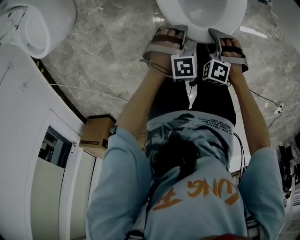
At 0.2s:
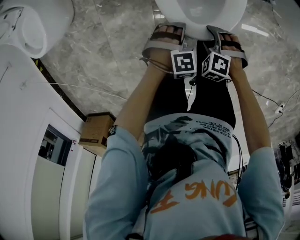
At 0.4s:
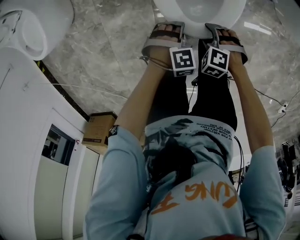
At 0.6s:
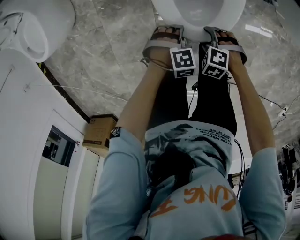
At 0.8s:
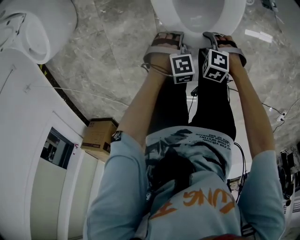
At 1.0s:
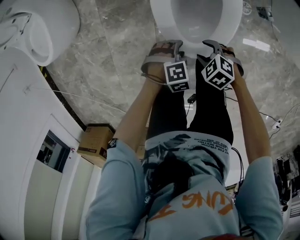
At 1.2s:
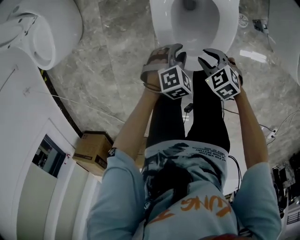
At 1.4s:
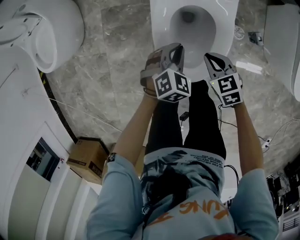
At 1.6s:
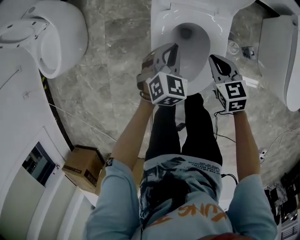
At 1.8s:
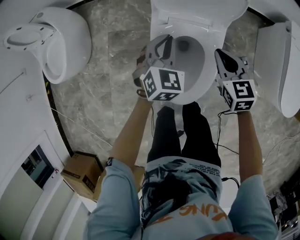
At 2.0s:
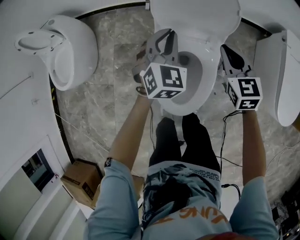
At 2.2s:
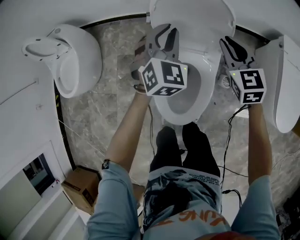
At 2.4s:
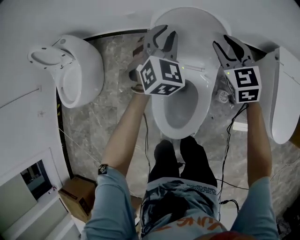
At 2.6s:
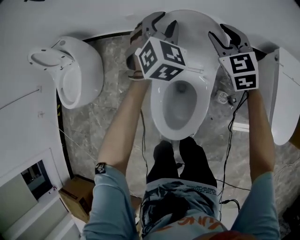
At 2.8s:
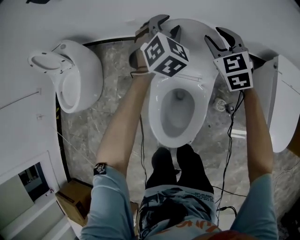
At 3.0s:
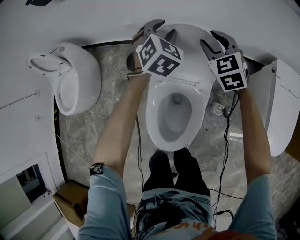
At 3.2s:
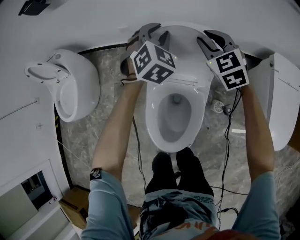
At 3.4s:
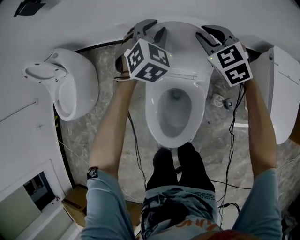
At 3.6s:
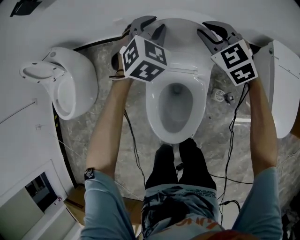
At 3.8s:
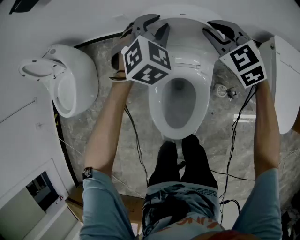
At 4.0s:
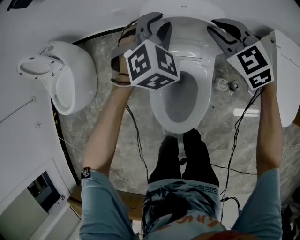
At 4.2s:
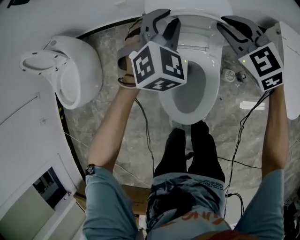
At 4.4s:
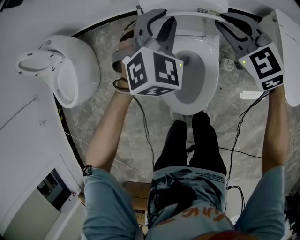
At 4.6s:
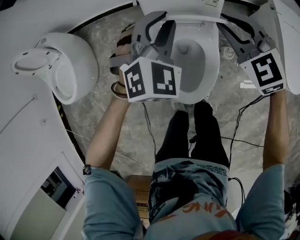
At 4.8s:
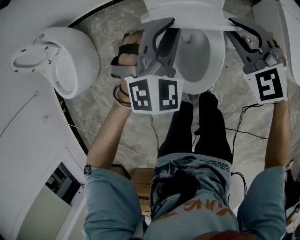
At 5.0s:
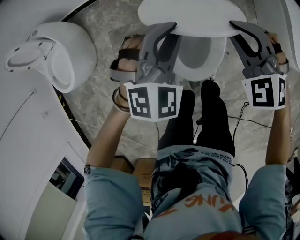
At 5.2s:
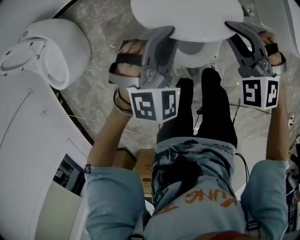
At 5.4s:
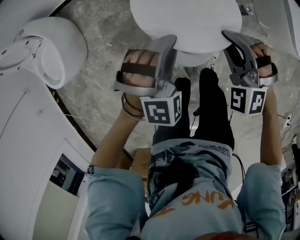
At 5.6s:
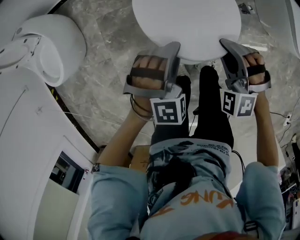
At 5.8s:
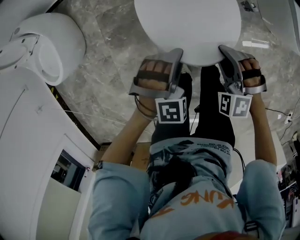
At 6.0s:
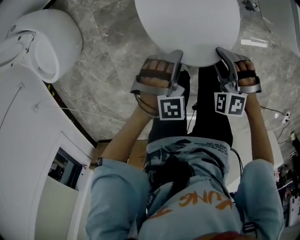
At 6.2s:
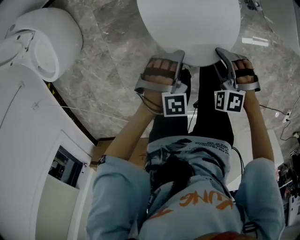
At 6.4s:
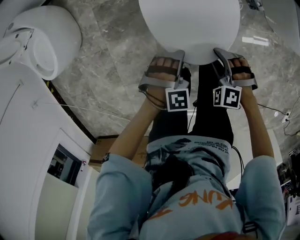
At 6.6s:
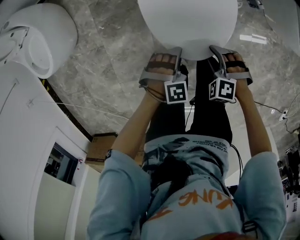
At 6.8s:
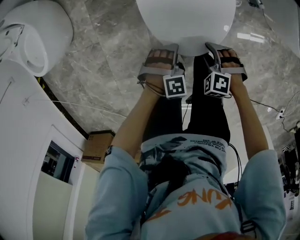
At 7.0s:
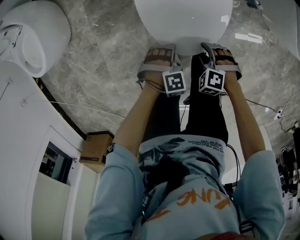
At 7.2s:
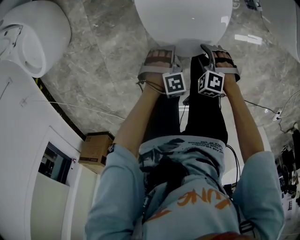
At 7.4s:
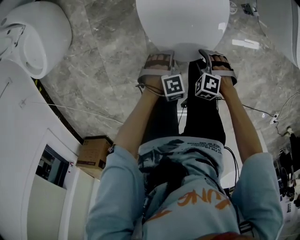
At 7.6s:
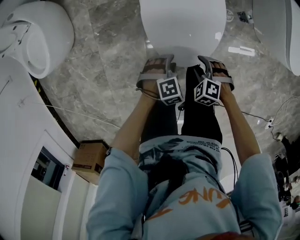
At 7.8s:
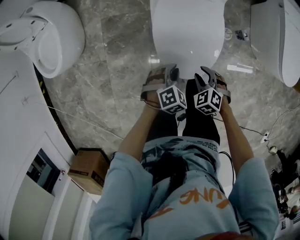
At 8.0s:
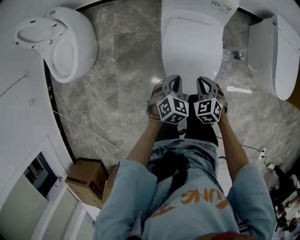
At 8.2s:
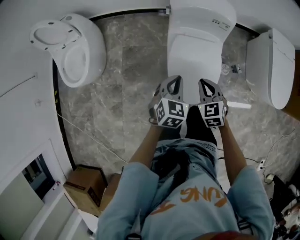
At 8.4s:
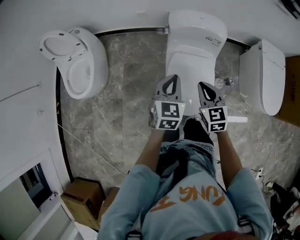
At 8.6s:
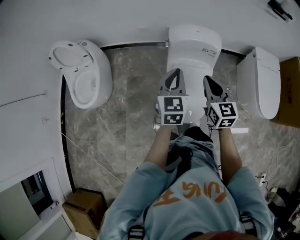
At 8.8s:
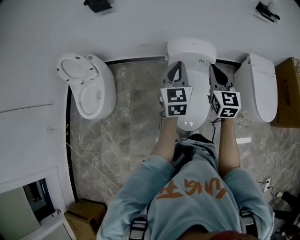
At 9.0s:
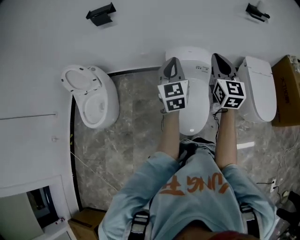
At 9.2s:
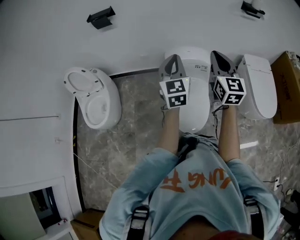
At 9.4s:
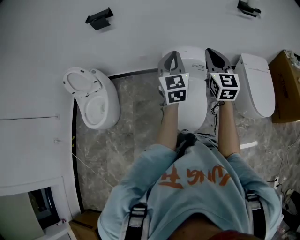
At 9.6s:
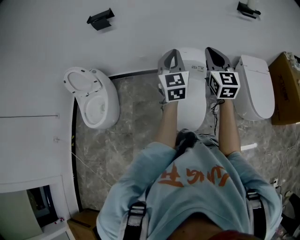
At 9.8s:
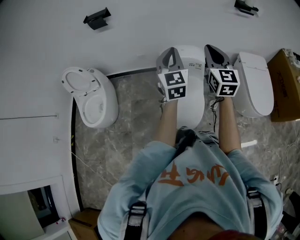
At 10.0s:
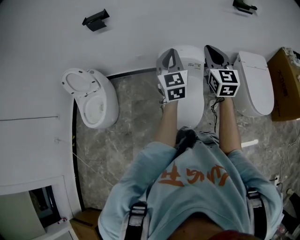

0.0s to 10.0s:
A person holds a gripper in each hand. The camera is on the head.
0.0s to 1.4s: The right gripper reaches approximately 10 cm downward, then returns, twists approximately 50 degrees clockwise, seen from behind, and closes; the left gripper moves roughly 10 cm downward and comes back, rotates around the line of its fingers by approximately 40 degrees, counterclockwise from behind, and closes its fingers.
1.4s to 2.8s: Both grippers move forward and upward, some 50 cm. The left gripper turns by about 30 degrees. Meanwhile the right gripper rotates about 40 degrees, and opens.
2.8s to 4.2s: Both grippers move backward, roughly 10 cm.
4.2s to 5.8s: Both grippers travel together backward and downward, some 40 cm. The right gripper rotates about 40 degrees. The left gripper rotates roughly 40 degrees.
5.8s to 7.2s: The left gripper travels downward by approximately 20 cm, and swivels approximately 20 degrees, while the right gripper heads downward and backward, covering approximately 20 cm, and swivels approximately 30 degrees.
7.2s to 8.6s: Both grippers move upward, approximately 50 cm. The left gripper tilts its fingers about 50 degrees upward, and closes its fingers. The right gripper points its fingers about 50 degrees further upward, and closes.
8.6s to 10.0s: The grippers both shift upward and to the right by approximately 20 cm. The right gripper changes its angle by some 20 degrees.

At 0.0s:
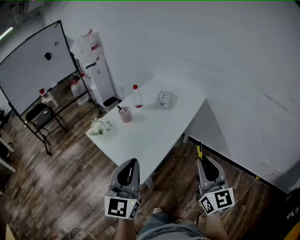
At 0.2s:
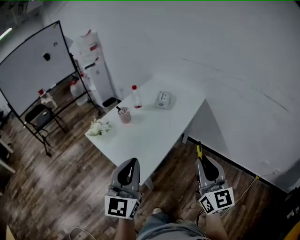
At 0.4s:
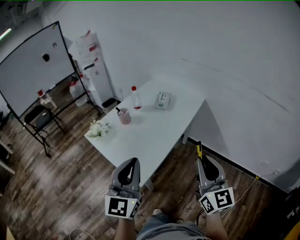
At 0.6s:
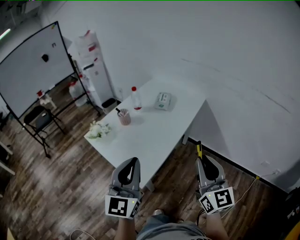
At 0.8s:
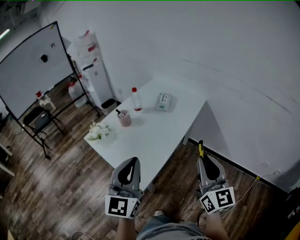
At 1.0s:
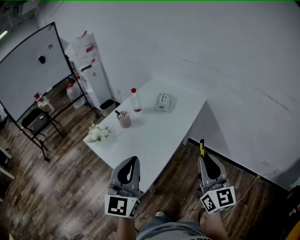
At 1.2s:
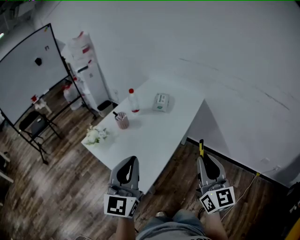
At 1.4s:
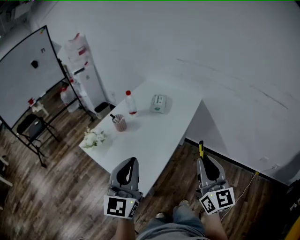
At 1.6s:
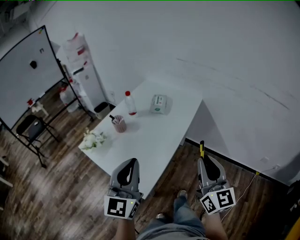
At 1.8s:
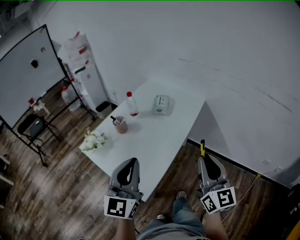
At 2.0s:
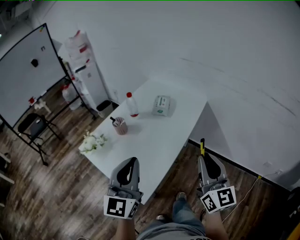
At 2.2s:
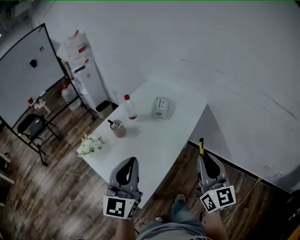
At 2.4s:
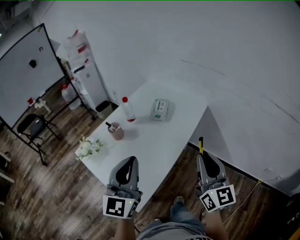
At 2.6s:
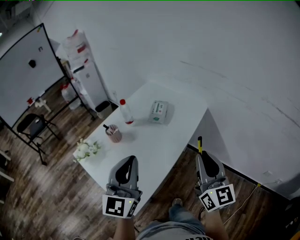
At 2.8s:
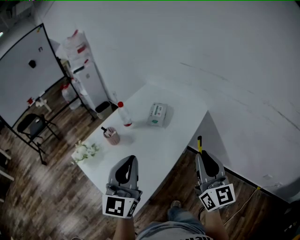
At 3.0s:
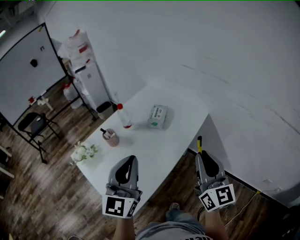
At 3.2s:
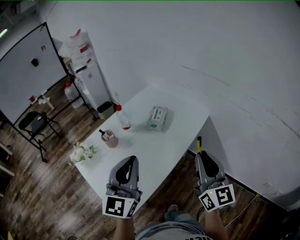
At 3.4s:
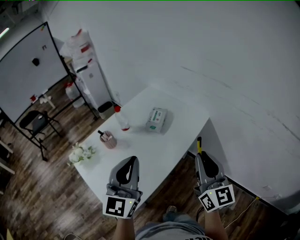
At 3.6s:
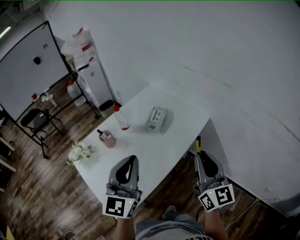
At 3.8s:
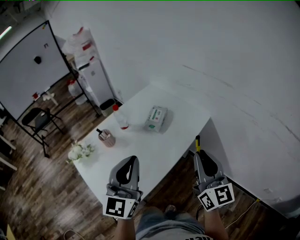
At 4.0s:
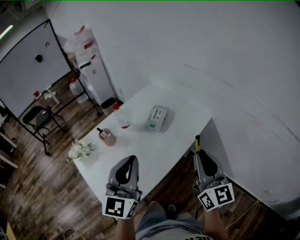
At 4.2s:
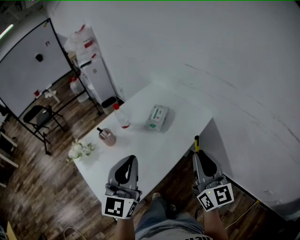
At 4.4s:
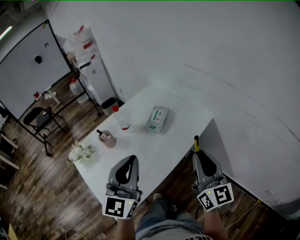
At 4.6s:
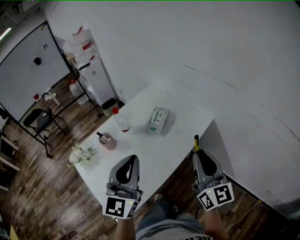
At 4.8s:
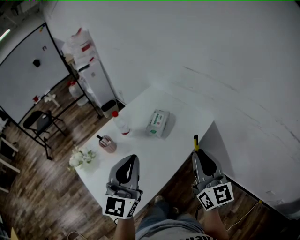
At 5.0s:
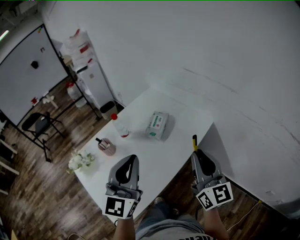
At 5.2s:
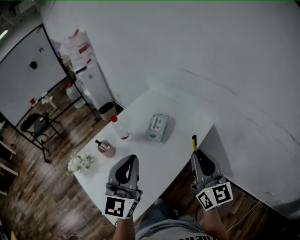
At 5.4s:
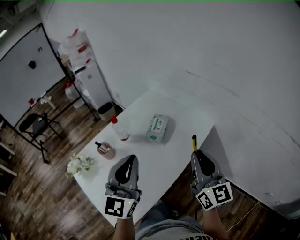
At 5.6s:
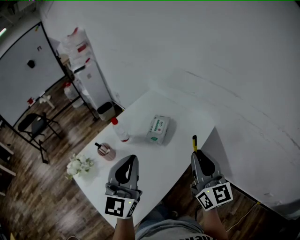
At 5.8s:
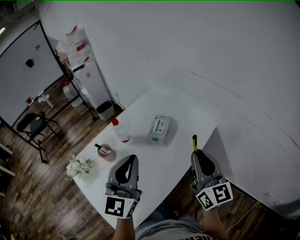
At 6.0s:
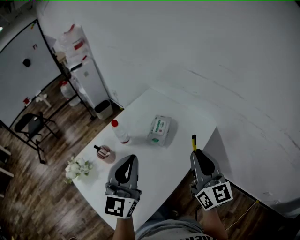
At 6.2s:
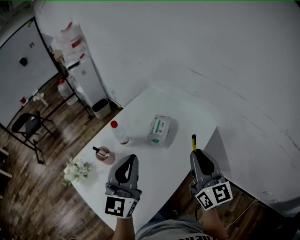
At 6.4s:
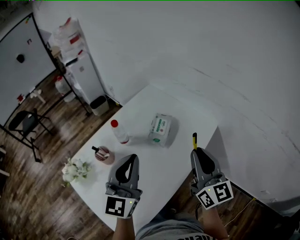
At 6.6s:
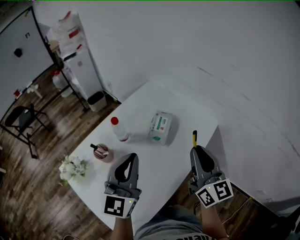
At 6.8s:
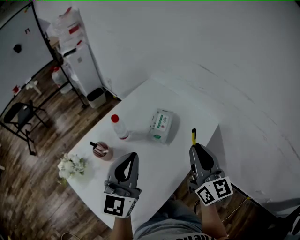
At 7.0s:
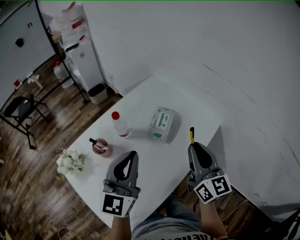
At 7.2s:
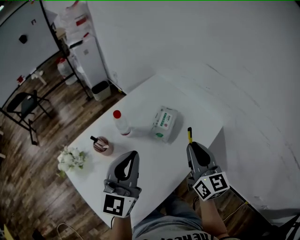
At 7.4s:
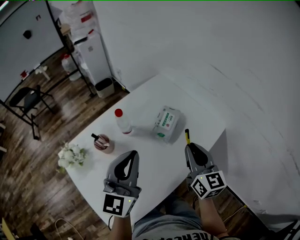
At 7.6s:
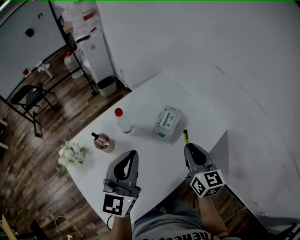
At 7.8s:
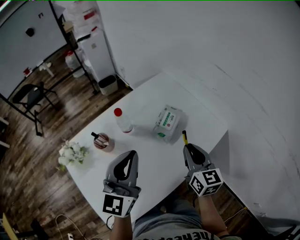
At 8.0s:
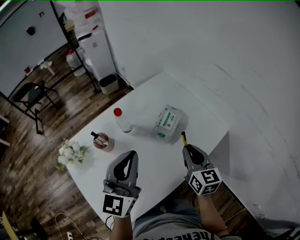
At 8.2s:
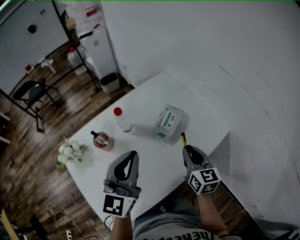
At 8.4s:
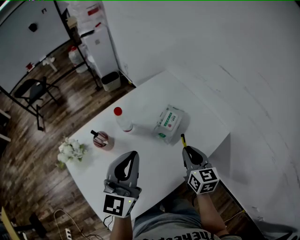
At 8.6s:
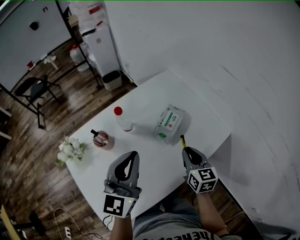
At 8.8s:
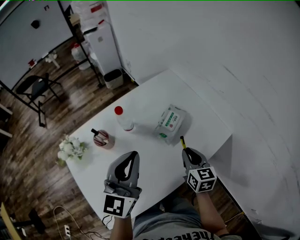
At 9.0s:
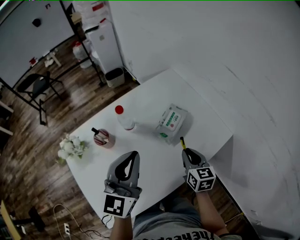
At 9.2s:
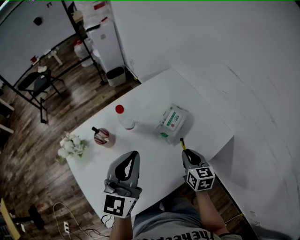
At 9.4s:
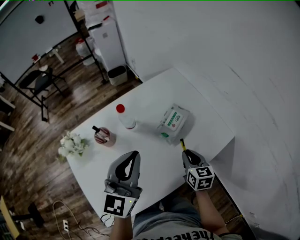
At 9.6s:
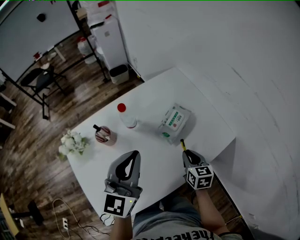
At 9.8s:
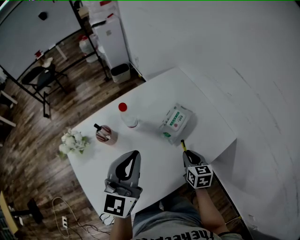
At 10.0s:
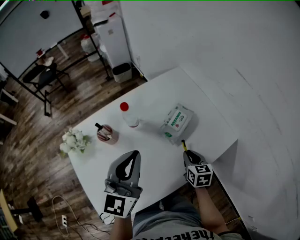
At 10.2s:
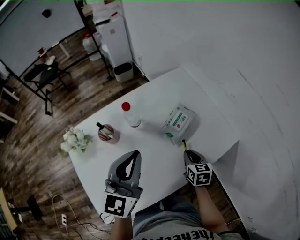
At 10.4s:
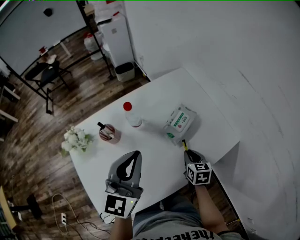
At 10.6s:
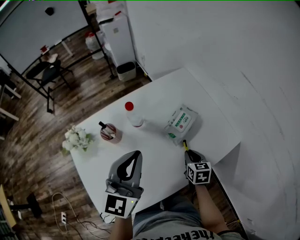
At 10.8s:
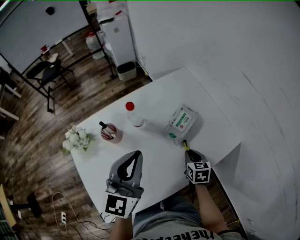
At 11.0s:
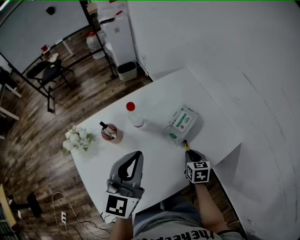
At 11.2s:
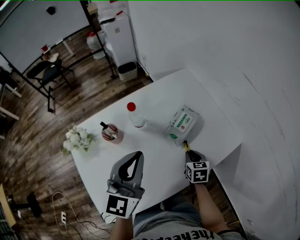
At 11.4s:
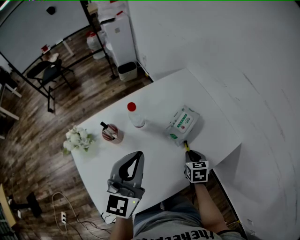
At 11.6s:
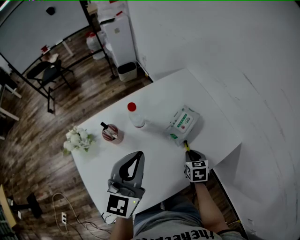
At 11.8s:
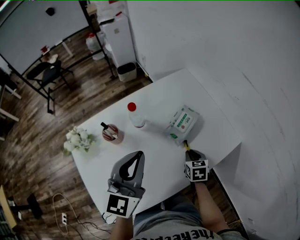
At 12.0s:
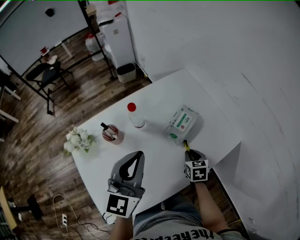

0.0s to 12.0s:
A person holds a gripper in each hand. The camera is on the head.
0.0s to 1.6s: Both grippers move forward, some 5 cm.
1.6s to 3.0s: The left gripper moves forward and to the right, some 15 cm, while the right gripper travels forward by about 20 cm.
3.0s to 4.4s: The right gripper moves forward, some 5 cm. Meanwhile the left gripper ends up roughly 5 cm from where it was.
4.4s to 6.0s: Both grippers move forward, approximately 10 cm.
6.0s to 7.6s: The left gripper moves some 5 cm; the right gripper is displaced downward and forward by roughly 15 cm.
7.6s to 9.0s: The right gripper travels downward by approximately 10 cm.
9.0s to 10.4s: The right gripper moves downward, about 5 cm.
10.4s to 12.0s: The grippers make only small movements.

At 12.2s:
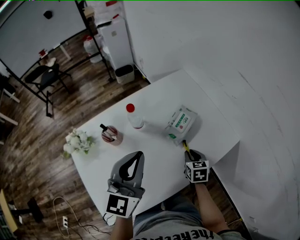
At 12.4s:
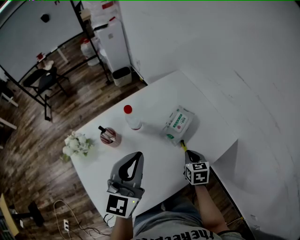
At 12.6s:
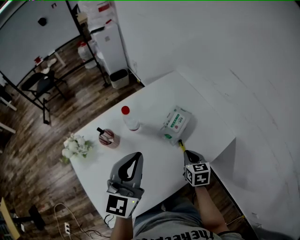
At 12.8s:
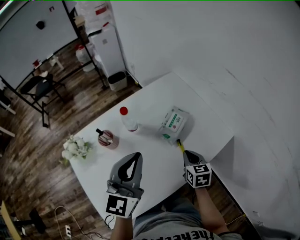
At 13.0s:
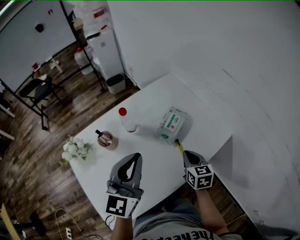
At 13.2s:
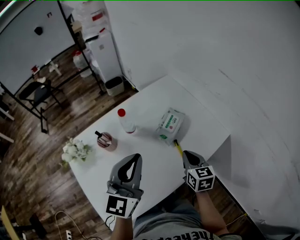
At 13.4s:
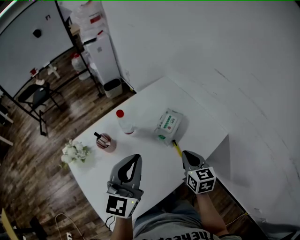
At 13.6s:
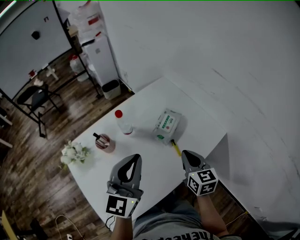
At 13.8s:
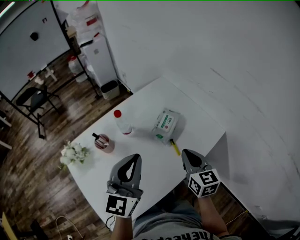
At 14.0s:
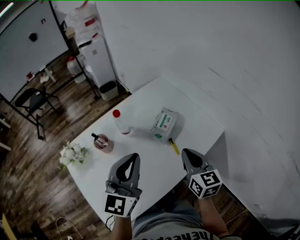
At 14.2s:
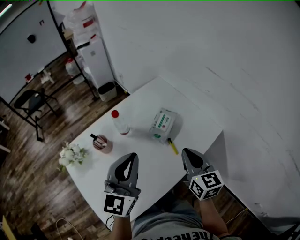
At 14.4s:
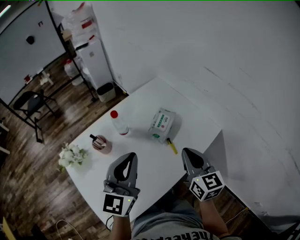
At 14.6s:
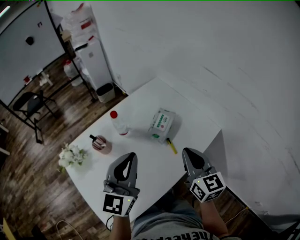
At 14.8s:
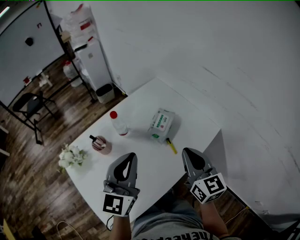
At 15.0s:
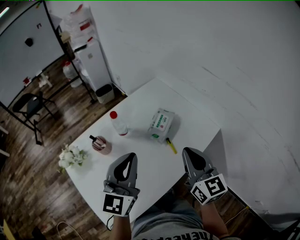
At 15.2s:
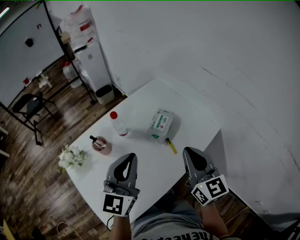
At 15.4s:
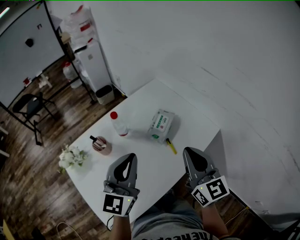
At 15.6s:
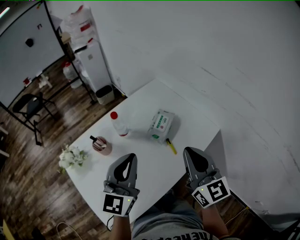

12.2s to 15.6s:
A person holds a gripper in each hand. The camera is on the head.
12.2s to 13.8s: The right gripper heads upward, covering approximately 15 cm, and swivels about 30 degrees.
13.8s to 15.6s: The right gripper shifts about 10 cm upward, and changes its angle by roughly 20 degrees.
